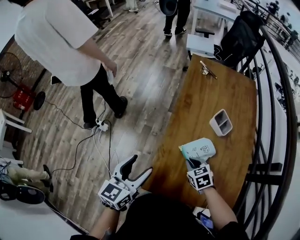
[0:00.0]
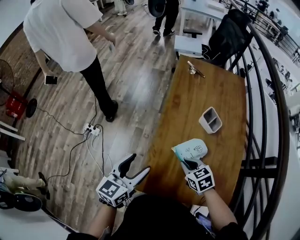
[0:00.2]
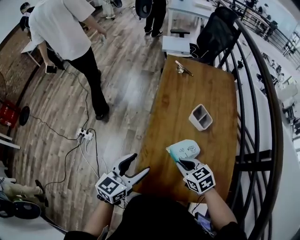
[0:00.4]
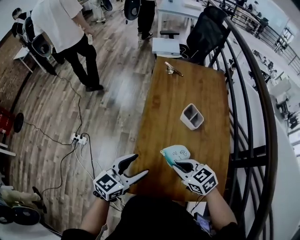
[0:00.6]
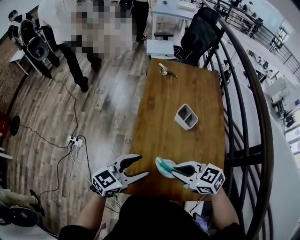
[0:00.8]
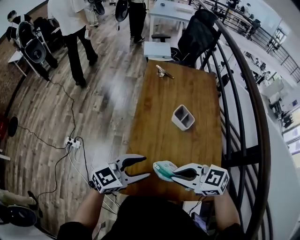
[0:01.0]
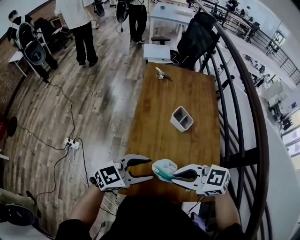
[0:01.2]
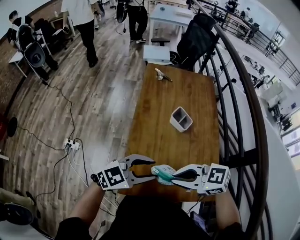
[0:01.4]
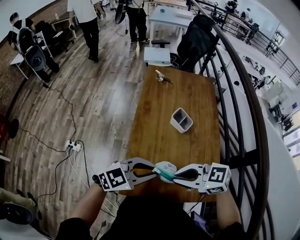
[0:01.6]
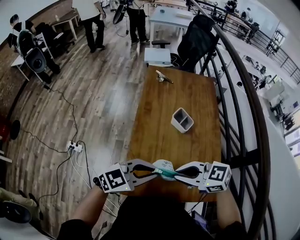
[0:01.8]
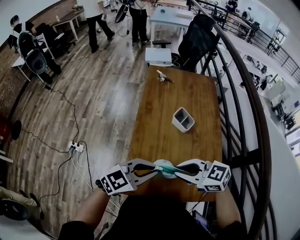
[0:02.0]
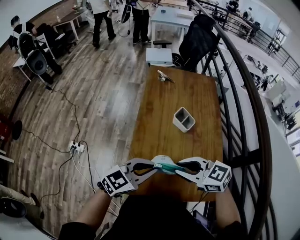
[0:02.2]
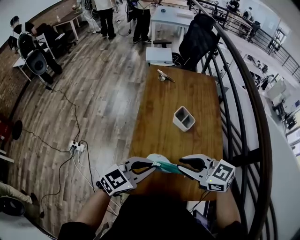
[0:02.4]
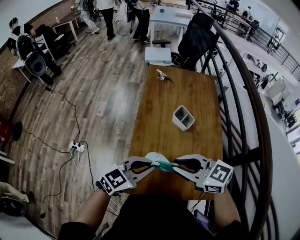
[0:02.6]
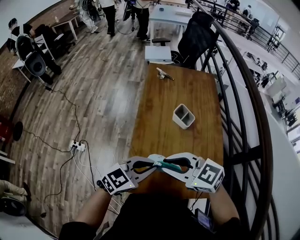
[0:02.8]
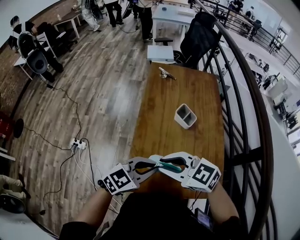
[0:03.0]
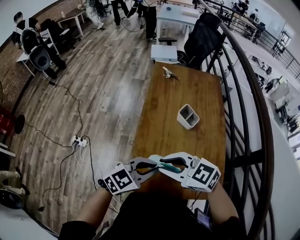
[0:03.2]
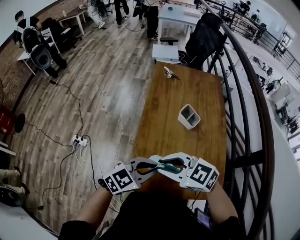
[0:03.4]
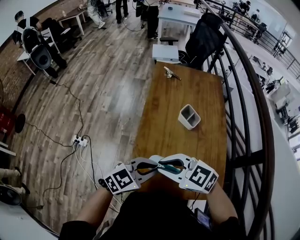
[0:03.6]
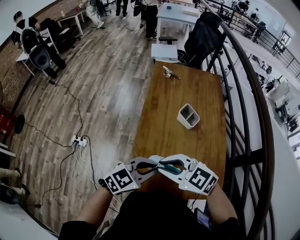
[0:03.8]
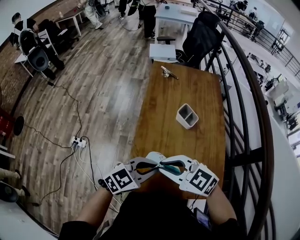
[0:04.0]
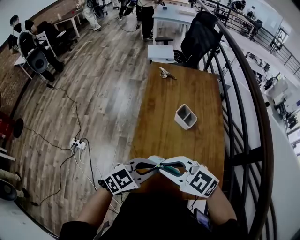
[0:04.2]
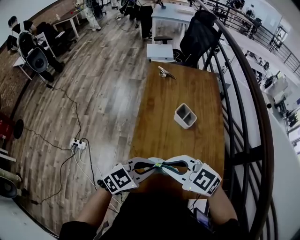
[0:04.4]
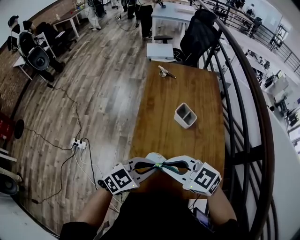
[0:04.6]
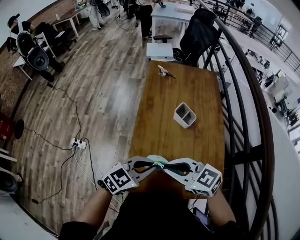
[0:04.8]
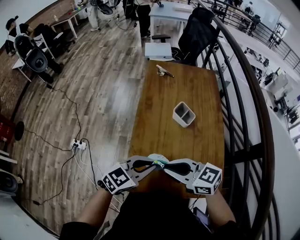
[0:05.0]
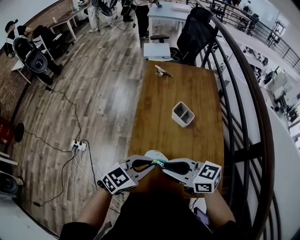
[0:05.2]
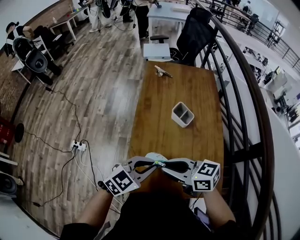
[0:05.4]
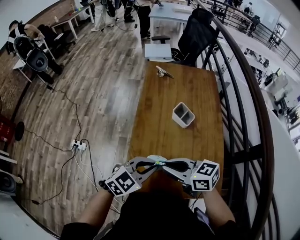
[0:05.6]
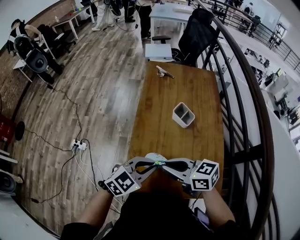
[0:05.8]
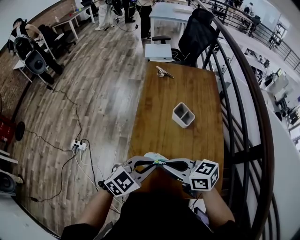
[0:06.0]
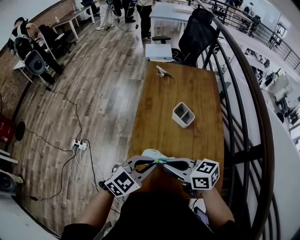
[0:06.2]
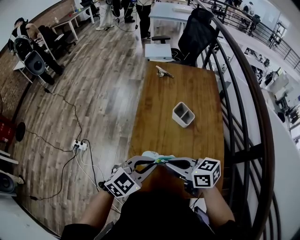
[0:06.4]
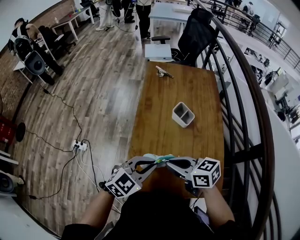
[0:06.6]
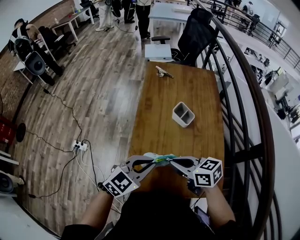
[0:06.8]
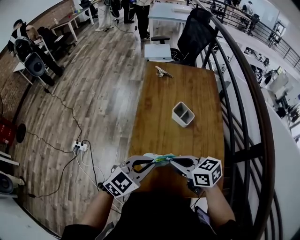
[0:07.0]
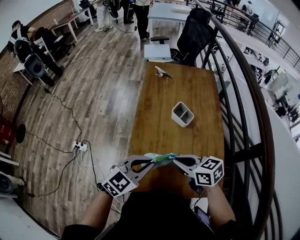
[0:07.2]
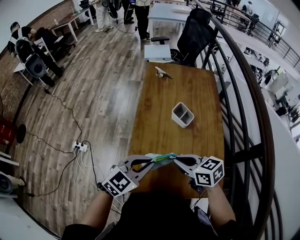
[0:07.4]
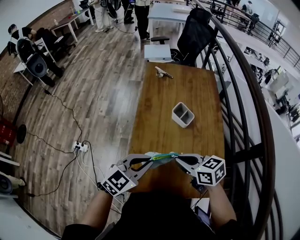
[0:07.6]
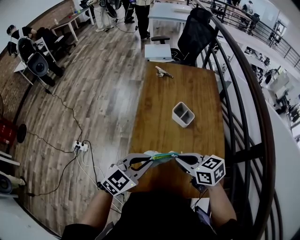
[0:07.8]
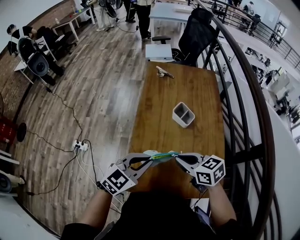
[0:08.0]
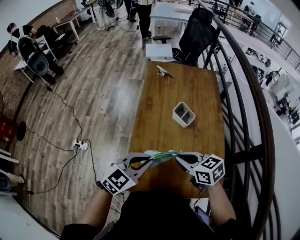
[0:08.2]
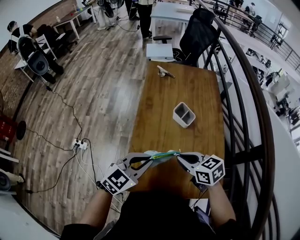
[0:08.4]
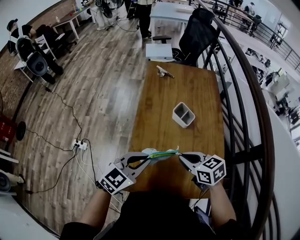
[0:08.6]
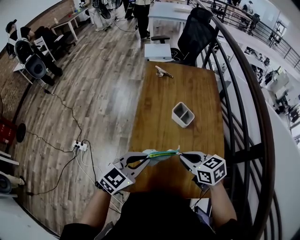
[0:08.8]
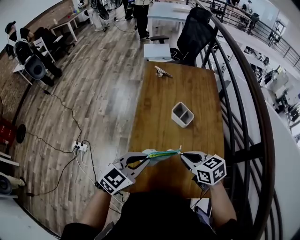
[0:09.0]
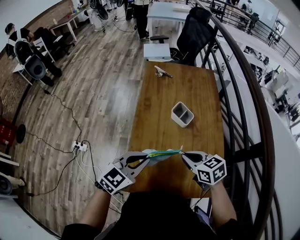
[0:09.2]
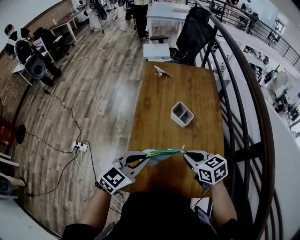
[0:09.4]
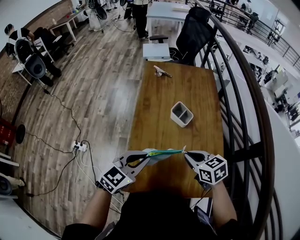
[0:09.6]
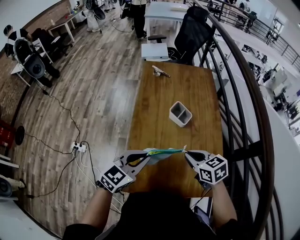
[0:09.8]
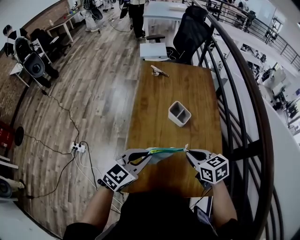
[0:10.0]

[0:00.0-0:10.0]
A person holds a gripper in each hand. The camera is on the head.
0:00.0 to 0:01.4: The left gripper changes place by some 20 cm, and swivels approximately 60 degrees. The right gripper travels upward by approximately 20 cm, and tilts its fingers approximately 30 degrees upward.
0:01.4 to 0:02.8: The left gripper closes up; the right gripper changes place by approximately 5 cm.
0:02.8 to 0:04.2: The grippers move only a little.
0:04.2 to 0:05.8: The right gripper swivels some 40 degrees.
0:05.8 to 0:07.2: The right gripper ends up some 5 cm from where it was.
0:07.2 to 0:08.6: The grippers make only small movements.
0:08.6 to 0:10.0: The grippers stay close to where they were, moving slightly.

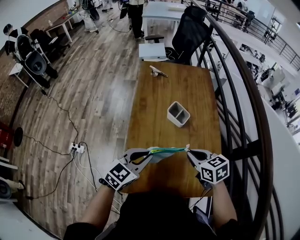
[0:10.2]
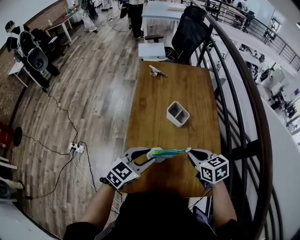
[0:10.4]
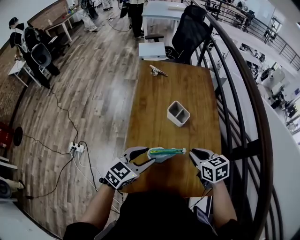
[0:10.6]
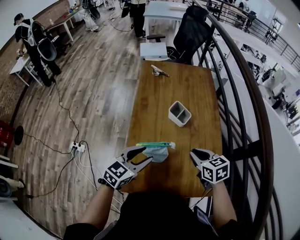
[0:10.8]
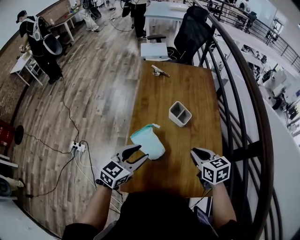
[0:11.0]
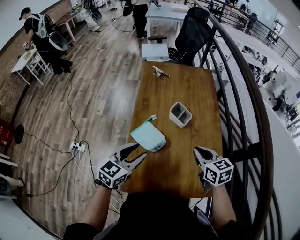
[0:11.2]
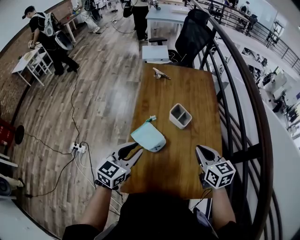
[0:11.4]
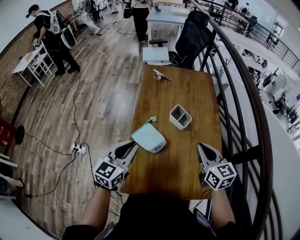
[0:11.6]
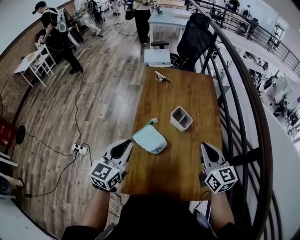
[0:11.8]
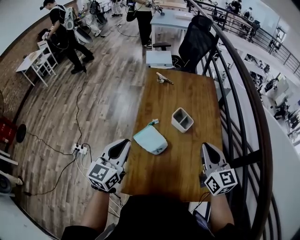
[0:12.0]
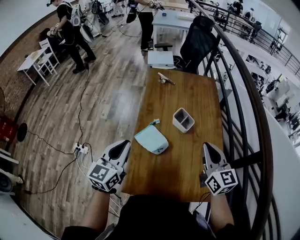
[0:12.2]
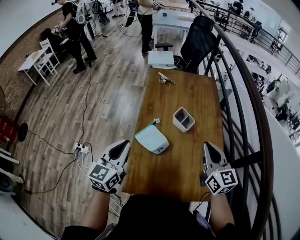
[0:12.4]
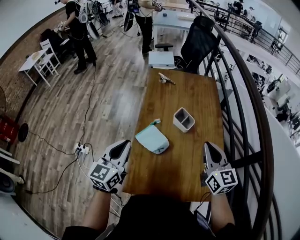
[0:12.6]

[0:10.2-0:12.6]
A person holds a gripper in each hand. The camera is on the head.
0:10.2 to 0:11.4: The right gripper ends up approximately 5 cm from where it was. The left gripper travels to the left by approximately 5 cm.
0:11.4 to 0:12.6: The left gripper travels to the left and upward by roughly 10 cm; the right gripper moves upward, about 5 cm, and rotates some 20 degrees.

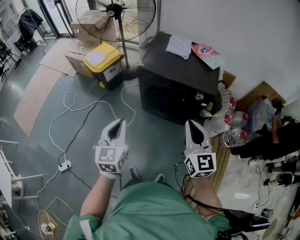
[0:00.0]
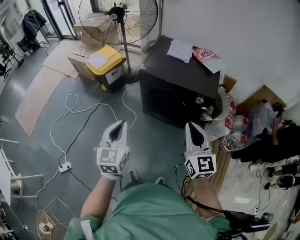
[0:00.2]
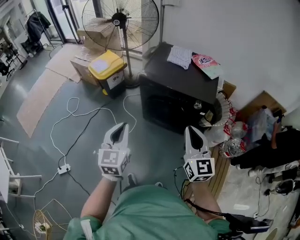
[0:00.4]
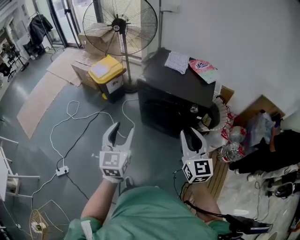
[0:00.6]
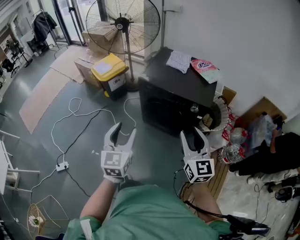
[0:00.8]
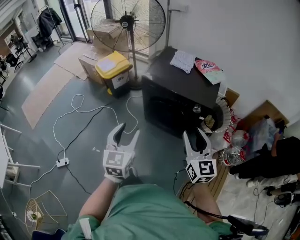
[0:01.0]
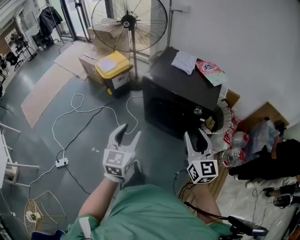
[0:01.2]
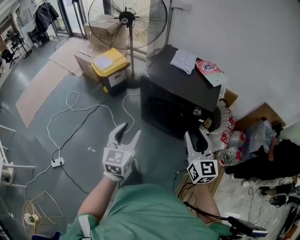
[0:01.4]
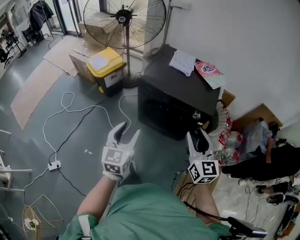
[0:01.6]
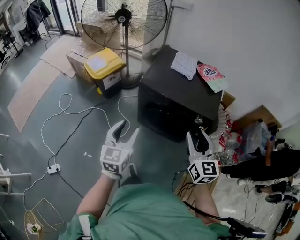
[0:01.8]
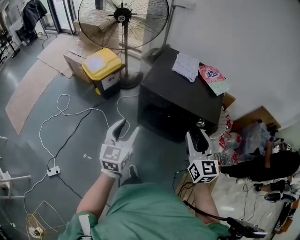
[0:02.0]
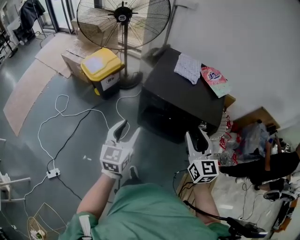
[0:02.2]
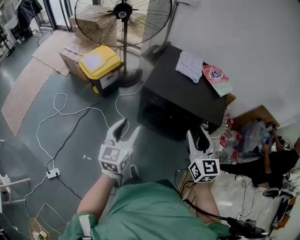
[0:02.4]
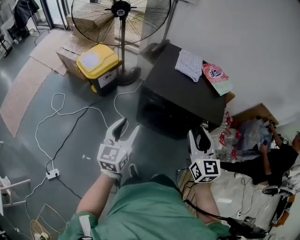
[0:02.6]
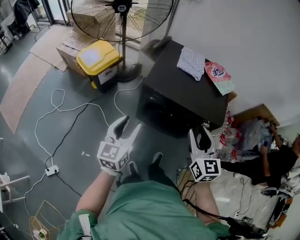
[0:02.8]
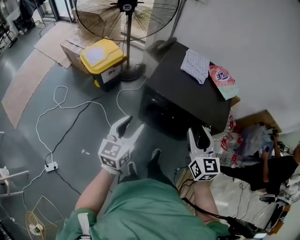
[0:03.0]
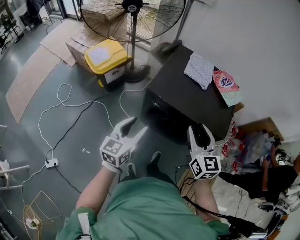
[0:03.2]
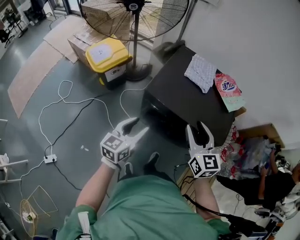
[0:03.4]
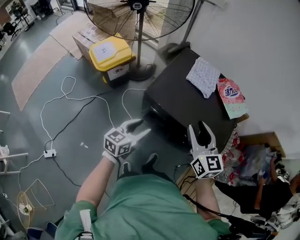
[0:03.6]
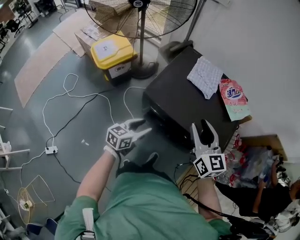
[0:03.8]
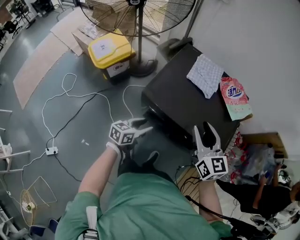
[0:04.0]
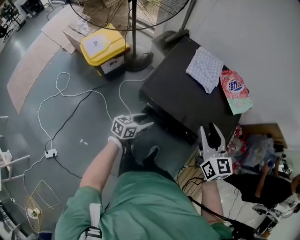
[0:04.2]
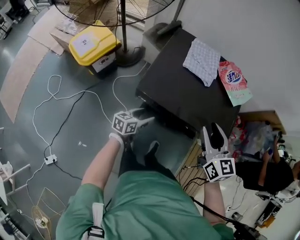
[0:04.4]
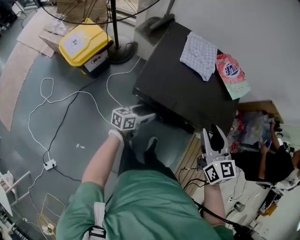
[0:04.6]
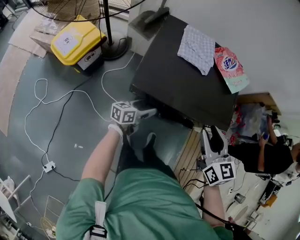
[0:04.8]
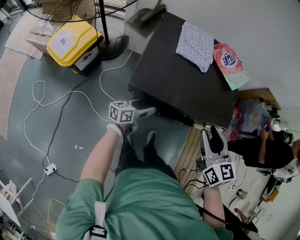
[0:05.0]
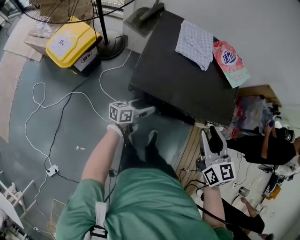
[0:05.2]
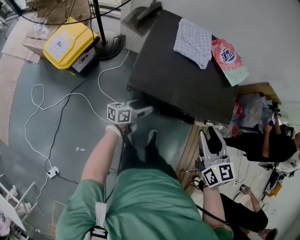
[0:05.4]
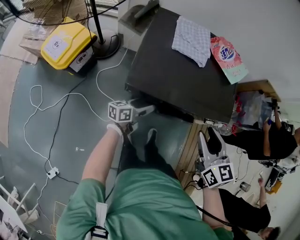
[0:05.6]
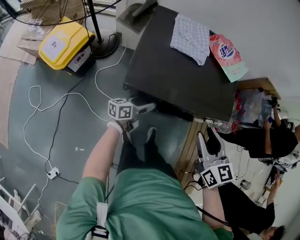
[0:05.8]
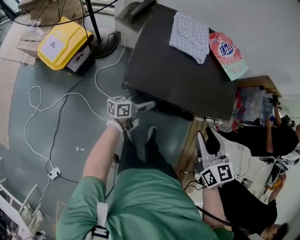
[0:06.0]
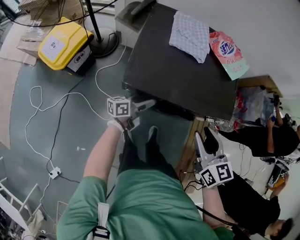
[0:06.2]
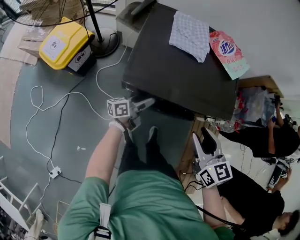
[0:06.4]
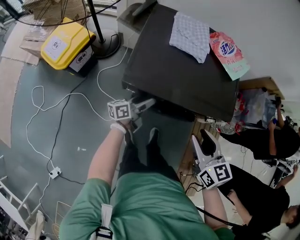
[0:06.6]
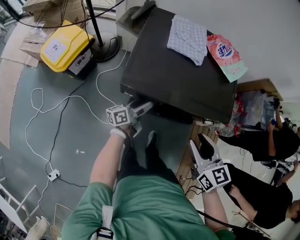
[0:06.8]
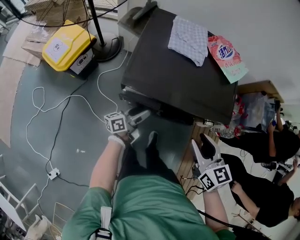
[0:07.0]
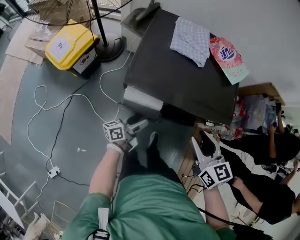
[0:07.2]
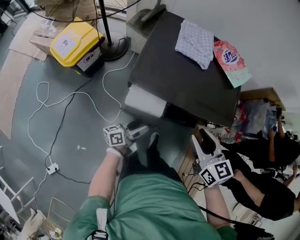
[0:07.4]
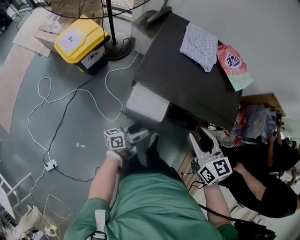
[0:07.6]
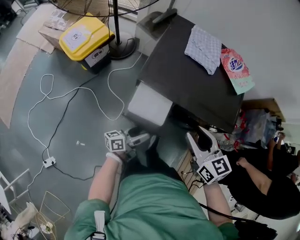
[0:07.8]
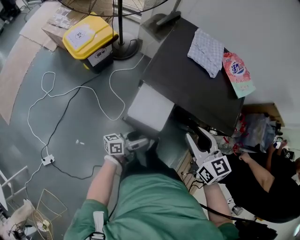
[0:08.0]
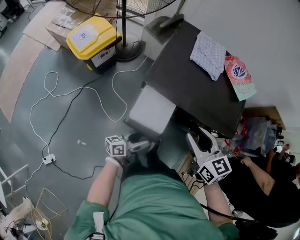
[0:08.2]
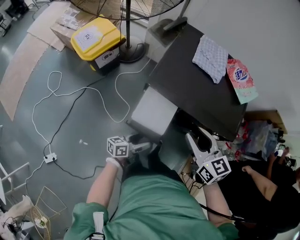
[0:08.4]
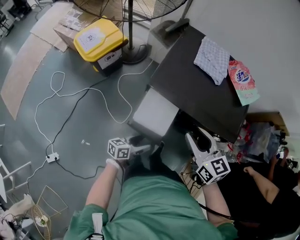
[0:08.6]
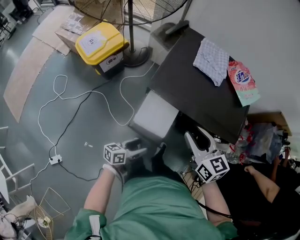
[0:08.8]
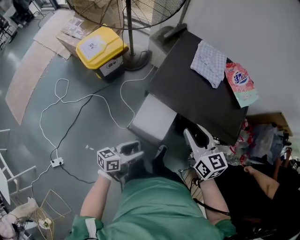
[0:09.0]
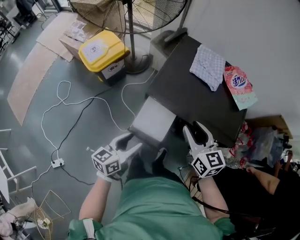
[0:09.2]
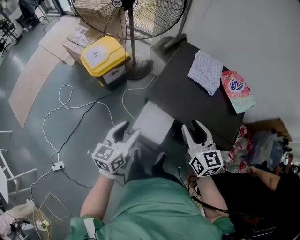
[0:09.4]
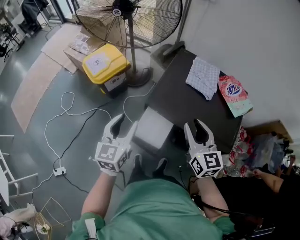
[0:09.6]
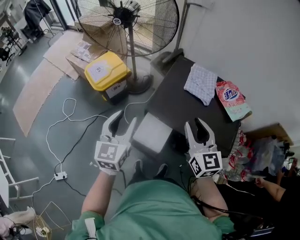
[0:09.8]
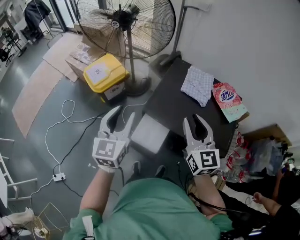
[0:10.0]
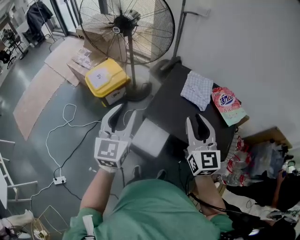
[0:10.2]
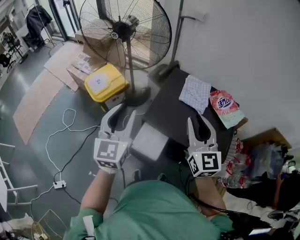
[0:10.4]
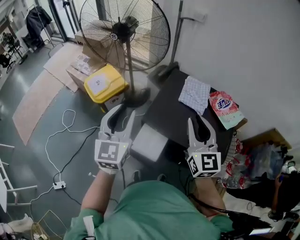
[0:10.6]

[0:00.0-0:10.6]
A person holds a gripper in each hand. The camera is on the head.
0:00.0 to 0:01.6: The right gripper ends up roughly 5 cm from where it was, and opens, while the left gripper is displaced to the right by some 5 cm, and opens up.
0:01.6 to 0:03.0: Both grippers move forward and to the left, some 20 cm.
0:03.0 to 0:04.6: The left gripper heads downward and forward, covering about 35 cm, and rotates approximately 40 degrees, while the right gripper travels forward by some 15 cm.
0:04.6 to 0:06.0: The right gripper changes place by about 5 cm. Meanwhile the left gripper ends up approximately 5 cm from where it was.
0:06.0 to 0:07.6: The left gripper moves backward, some 15 cm.
0:07.6 to 0:09.0: The right gripper shifts by roughly 5 cm, while the left gripper shifts about 10 cm backward and upward, and swivels some 20 degrees.
0:09.0 to 0:10.6: The right gripper heads upward, covering roughly 20 cm, and turns by about 30 degrees; the left gripper goes some 40 cm upward and forward, rotates approximately 70 degrees, and closes up.
